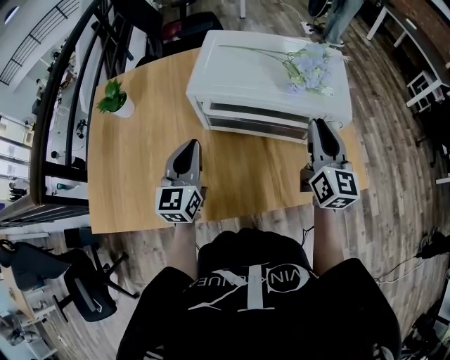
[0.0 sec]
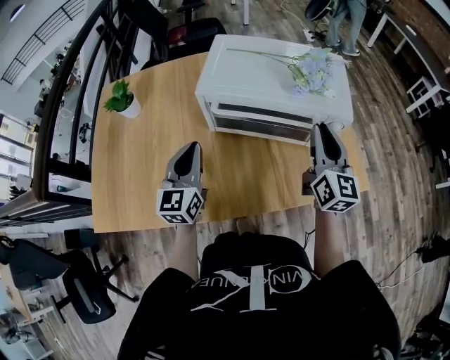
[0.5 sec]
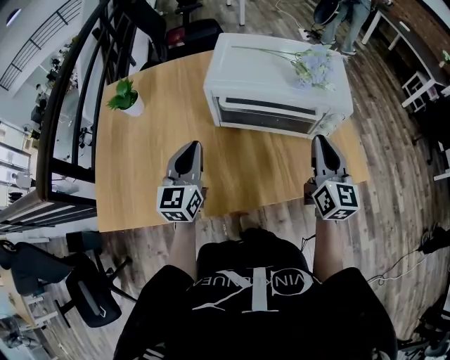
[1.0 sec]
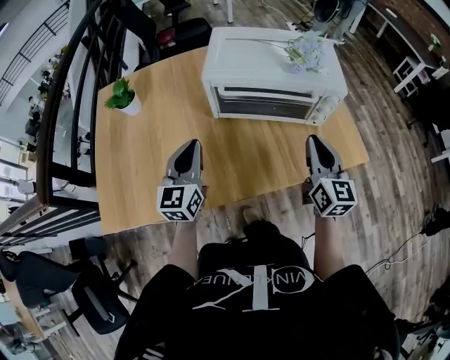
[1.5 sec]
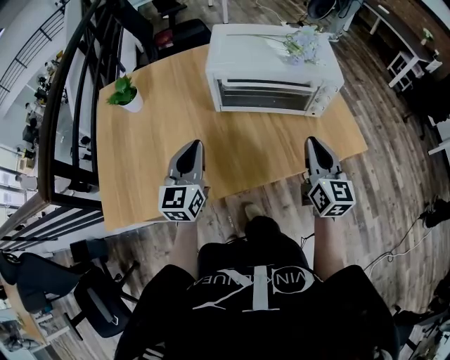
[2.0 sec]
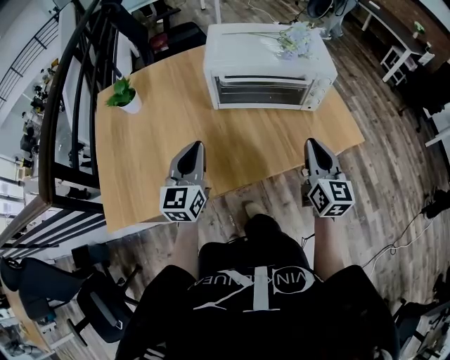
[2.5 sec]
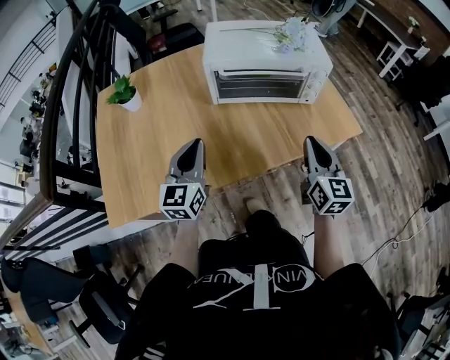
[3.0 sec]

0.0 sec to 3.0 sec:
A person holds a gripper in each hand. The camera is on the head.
0.0 sec to 1.5 sec: The left gripper is displaced backward by approximately 5 cm; the right gripper moves backward, some 10 cm.
1.5 sec to 3.0 sec: Both grippers travel together backward, about 10 cm.

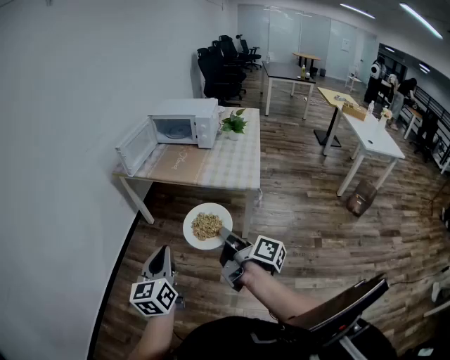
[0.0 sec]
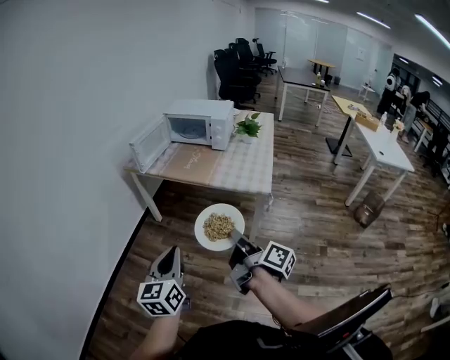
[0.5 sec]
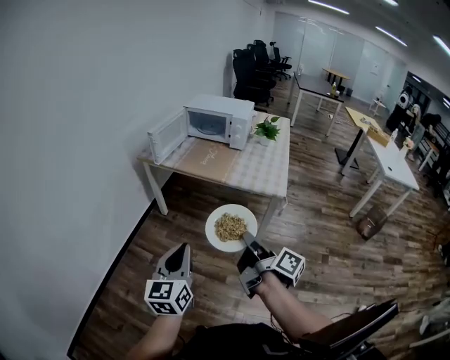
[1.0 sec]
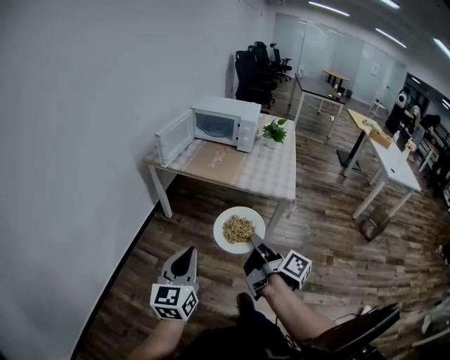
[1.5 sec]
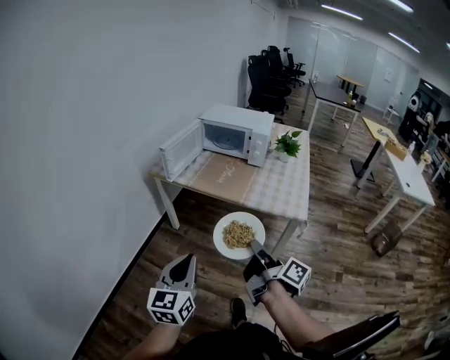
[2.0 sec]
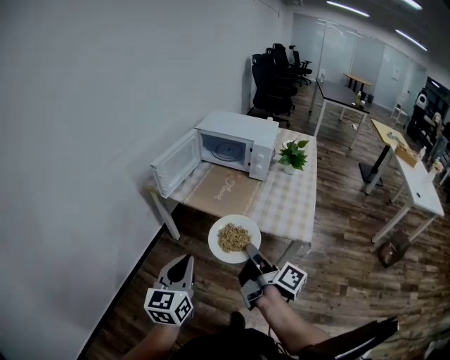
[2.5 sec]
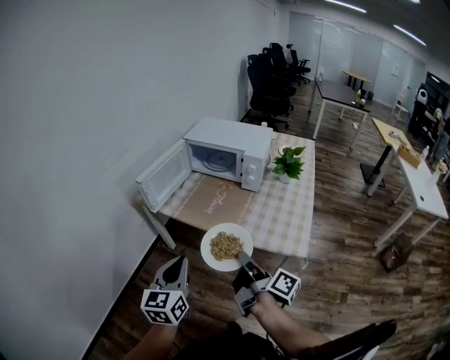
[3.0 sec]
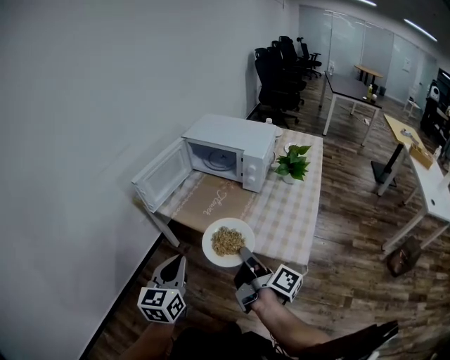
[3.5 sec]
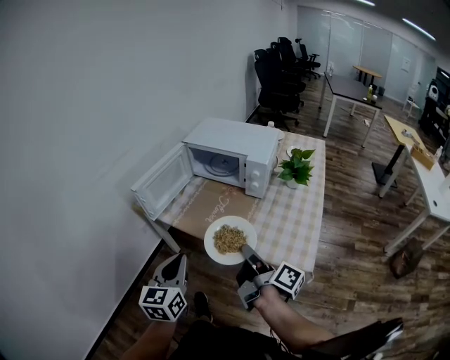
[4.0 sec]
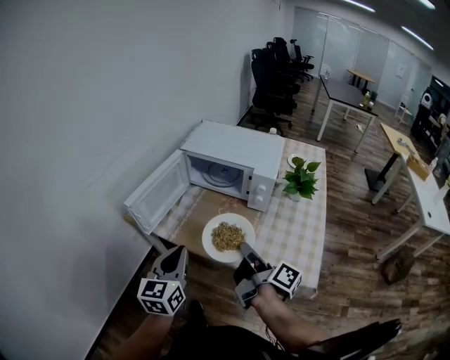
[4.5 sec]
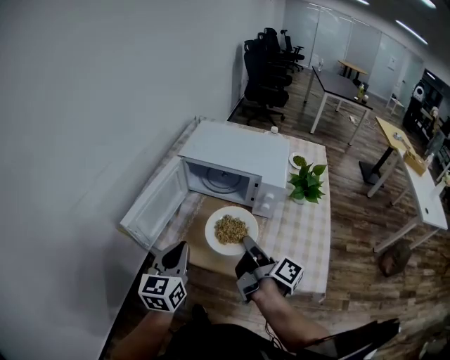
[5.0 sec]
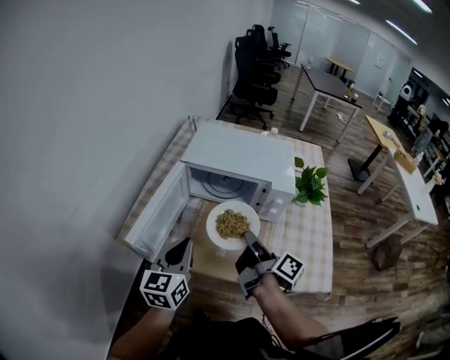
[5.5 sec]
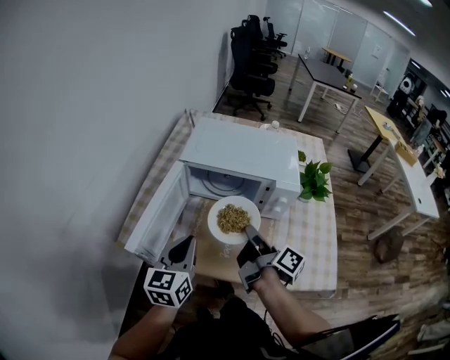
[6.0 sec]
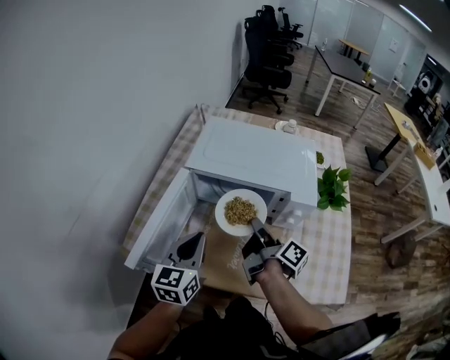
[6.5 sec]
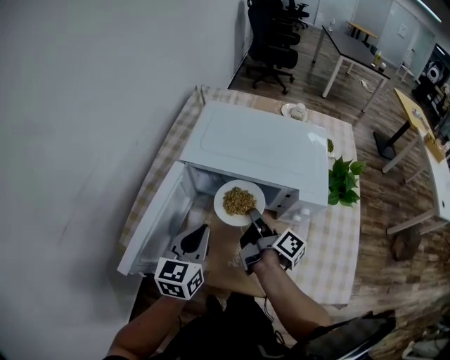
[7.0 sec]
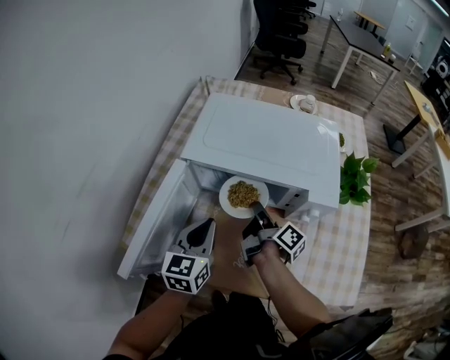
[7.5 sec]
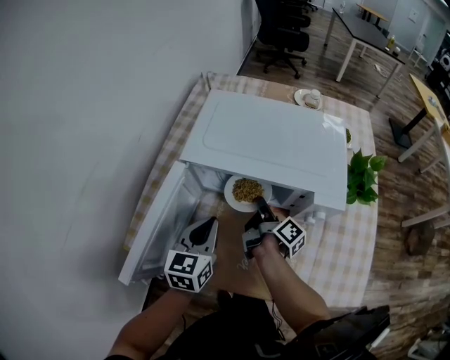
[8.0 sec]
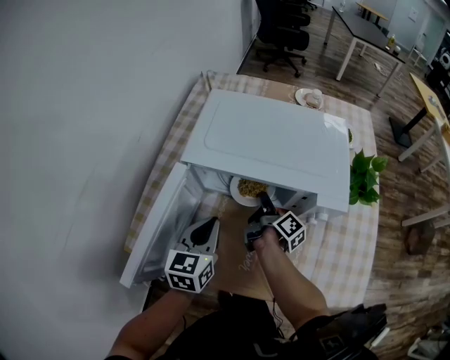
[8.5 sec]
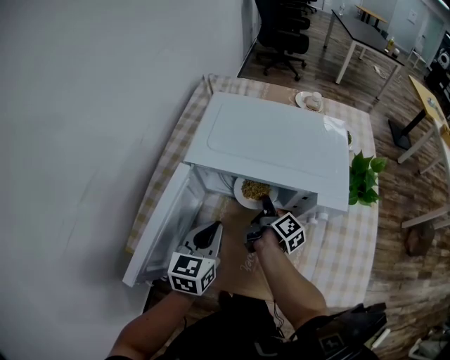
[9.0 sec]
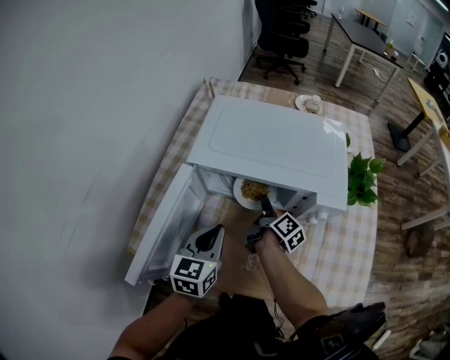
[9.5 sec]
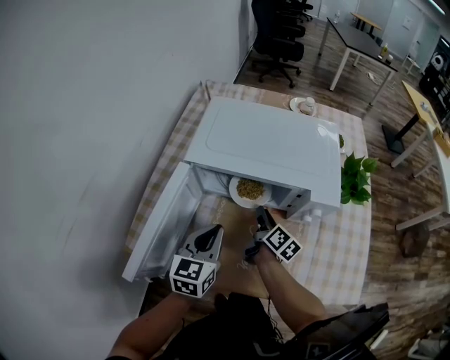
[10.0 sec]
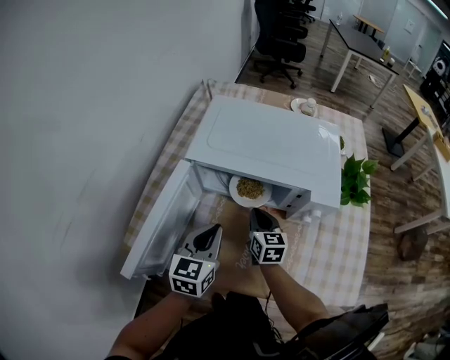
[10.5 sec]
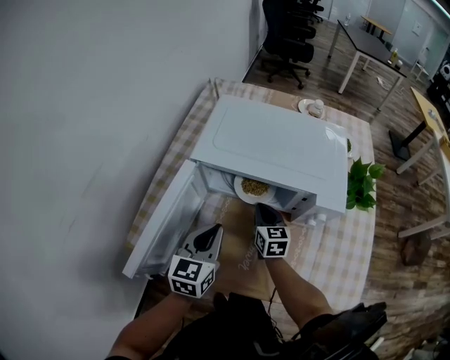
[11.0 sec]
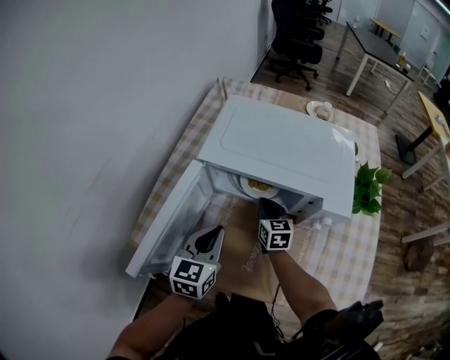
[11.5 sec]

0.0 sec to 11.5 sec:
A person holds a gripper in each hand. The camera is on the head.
0.0 sec to 2.0 sec: The two grippers go approximately 15 cm forward and to the left.
2.0 sec to 4.0 sec: The grippers both shift forward by roughly 25 cm.
4.0 sec to 6.0 sec: The left gripper is displaced forward by approximately 30 cm. The right gripper travels forward and to the left by roughly 30 cm.
6.0 sec to 7.5 sec: The two grippers go about 20 cm forward and downward.
7.5 sec to 9.5 sec: The right gripper is displaced downward by roughly 5 cm, and opens its fingers.
9.5 sec to 11.5 sec: The right gripper rolls counterclockwise, seen from behind, by some 70 degrees, and closes up.

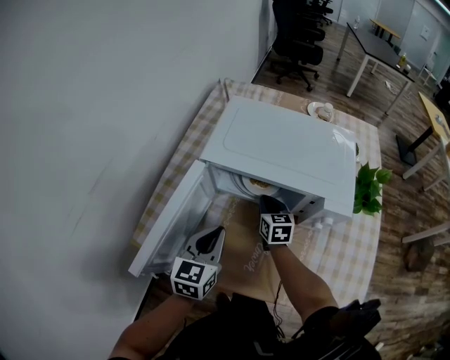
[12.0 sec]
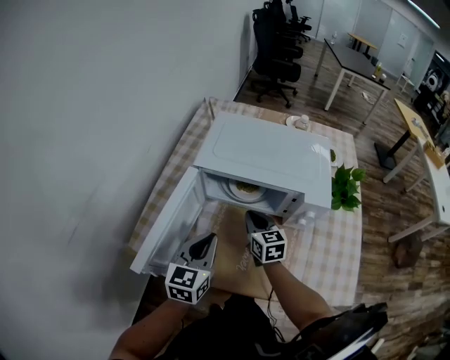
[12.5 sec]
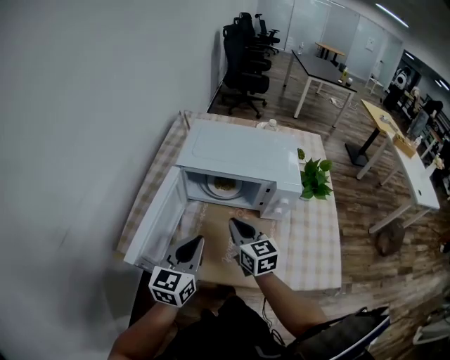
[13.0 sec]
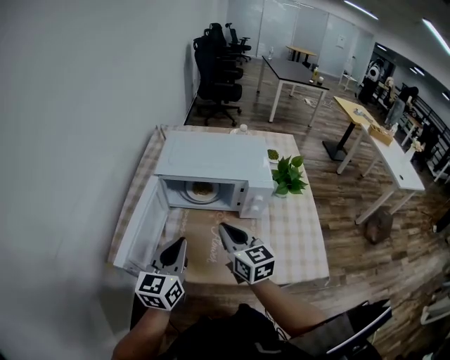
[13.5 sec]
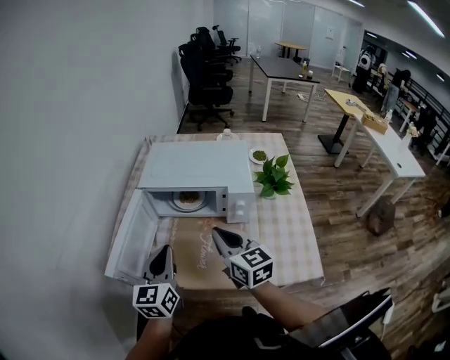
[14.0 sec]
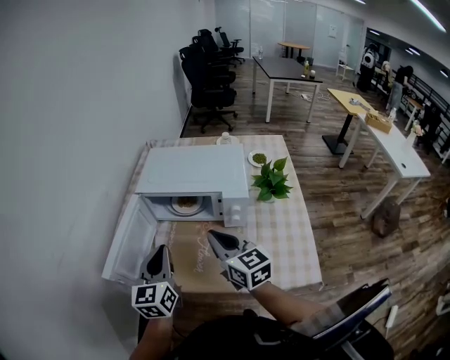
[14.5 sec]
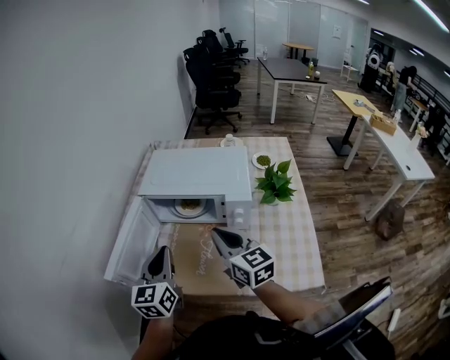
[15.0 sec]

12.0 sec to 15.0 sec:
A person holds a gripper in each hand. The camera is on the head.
12.0 sec to 13.5 sec: The left gripper moves backward and upward, approximately 15 cm. The right gripper goes some 30 cm backward and upward.
13.5 sec to 15.0 sec: The right gripper goes some 10 cm to the right and upward.

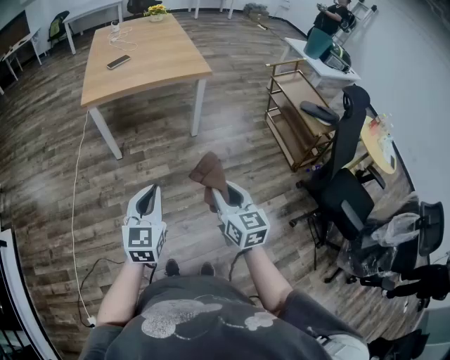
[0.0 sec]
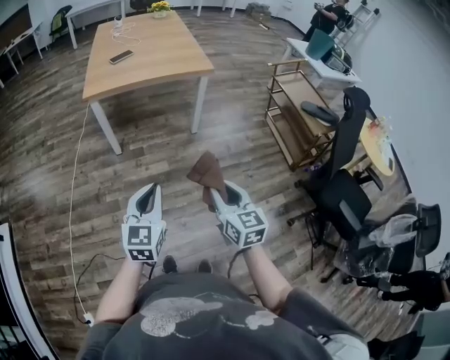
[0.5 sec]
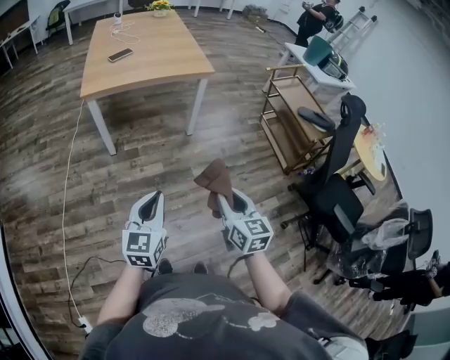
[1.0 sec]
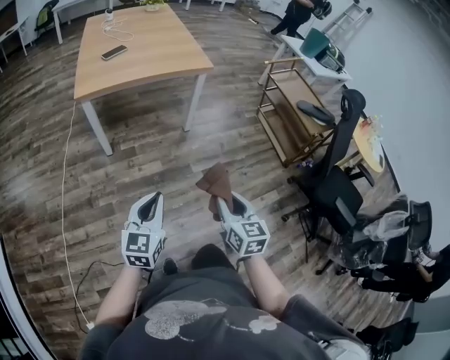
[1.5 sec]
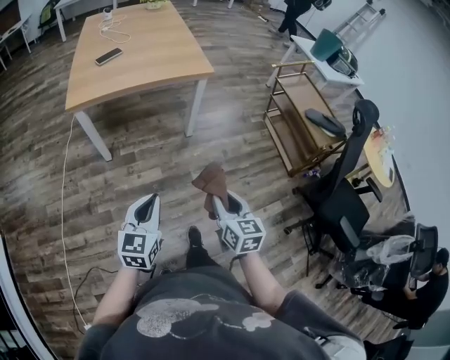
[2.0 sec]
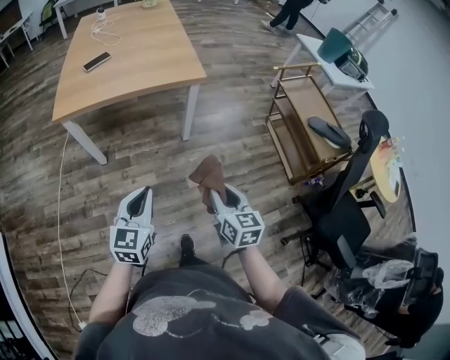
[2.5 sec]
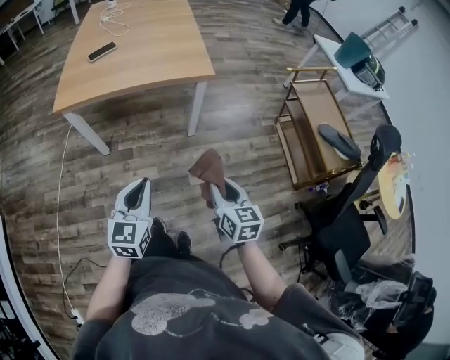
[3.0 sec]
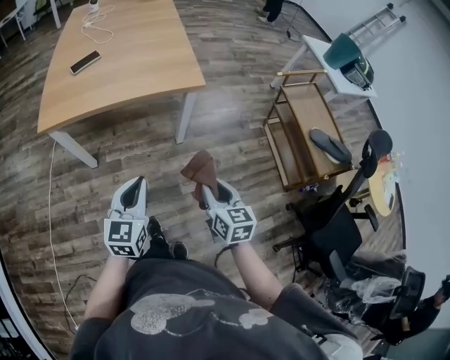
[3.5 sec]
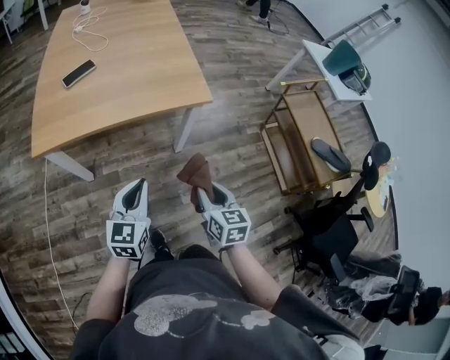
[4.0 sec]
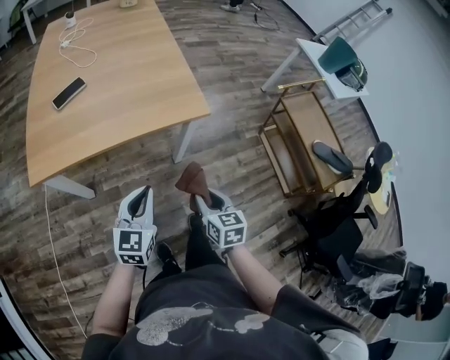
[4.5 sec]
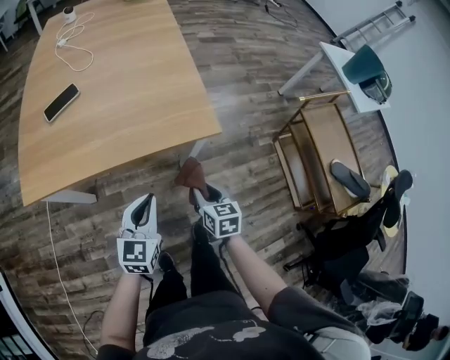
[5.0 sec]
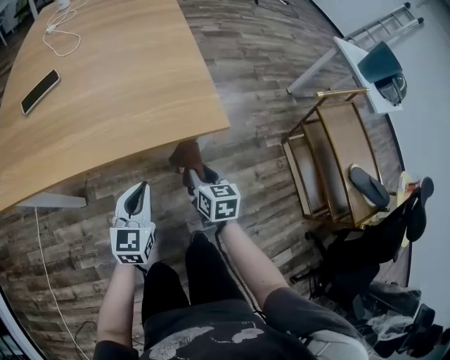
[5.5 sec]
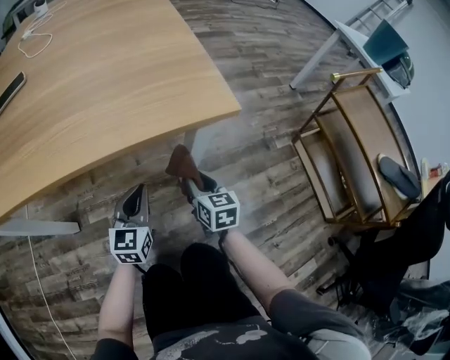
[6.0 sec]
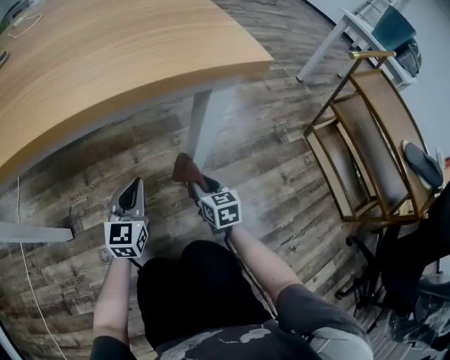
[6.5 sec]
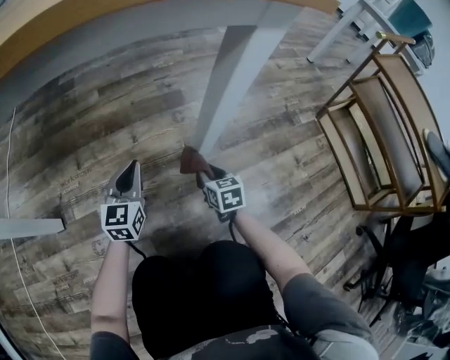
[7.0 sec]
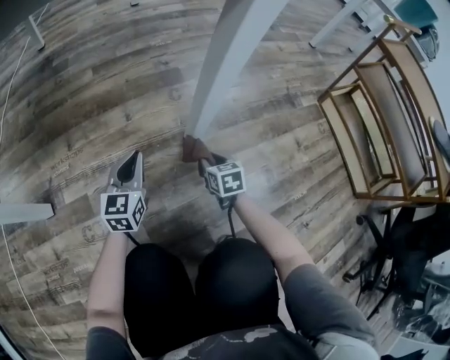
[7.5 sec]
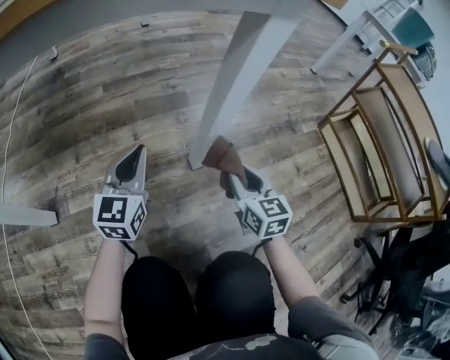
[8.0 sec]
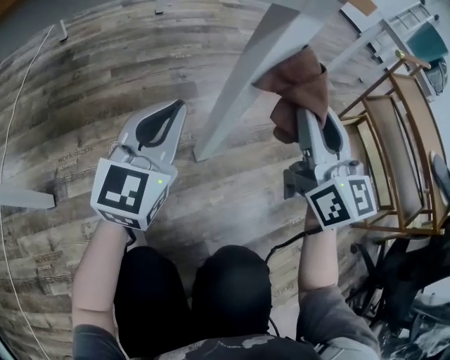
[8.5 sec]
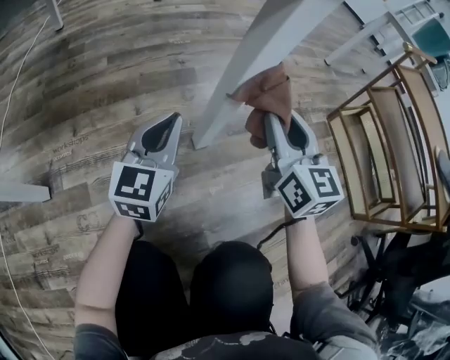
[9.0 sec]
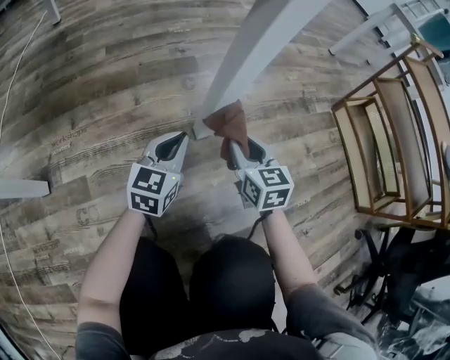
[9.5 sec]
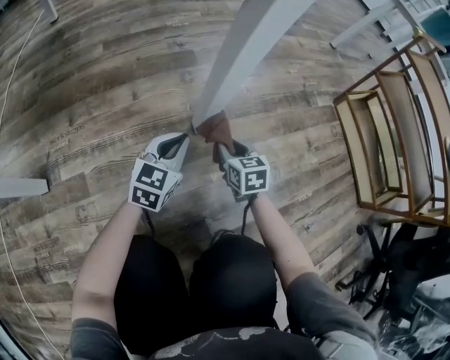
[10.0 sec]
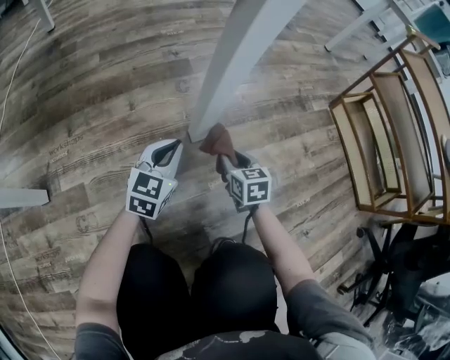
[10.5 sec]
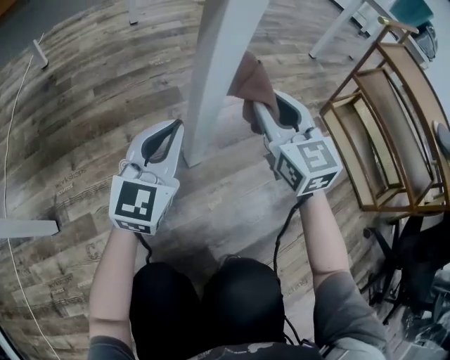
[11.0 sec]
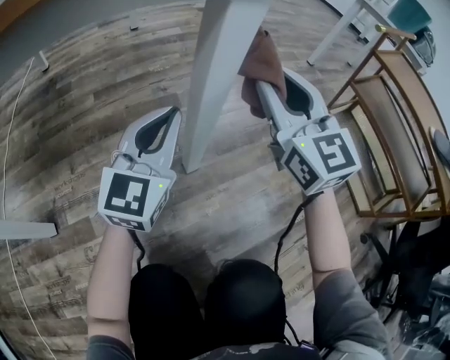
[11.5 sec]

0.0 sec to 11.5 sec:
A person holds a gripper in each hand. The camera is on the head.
0.0 sec to 2.0 sec: Both grippers move forward and downward, about 10 cm.
2.0 sec to 4.0 sec: Both grippers travel together forward, about 30 cm.
4.0 sec to 6.0 sec: The two grippers go approximately 40 cm downward and forward.
6.0 sec to 7.5 sec: Both grippers move downward, roughly 30 cm.
7.5 sec to 9.5 sec: The right gripper moves approximately 50 cm upward and comes back, while the left gripper goes about 10 cm to the right, and goes upward and returns, about 25 cm each way.
9.5 sec to 11.5 sec: Both grippers travel together upward, approximately 25 cm. The right gripper swivels about 40 degrees; the left gripper rotates about 20 degrees.
